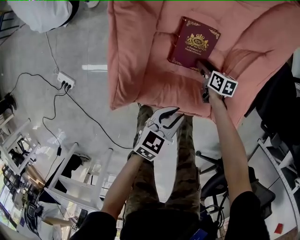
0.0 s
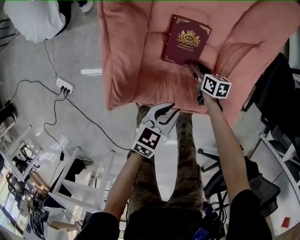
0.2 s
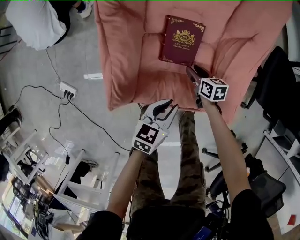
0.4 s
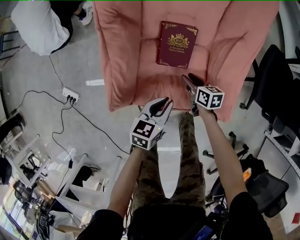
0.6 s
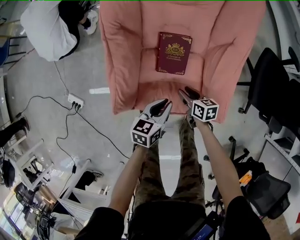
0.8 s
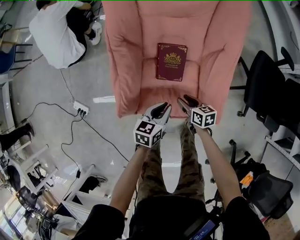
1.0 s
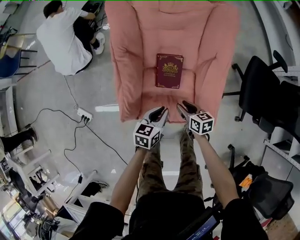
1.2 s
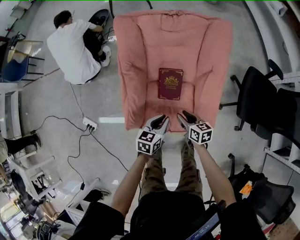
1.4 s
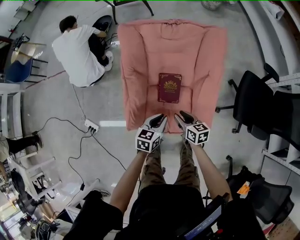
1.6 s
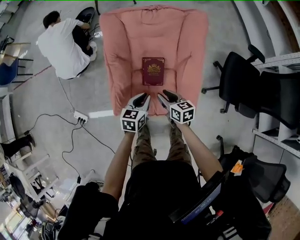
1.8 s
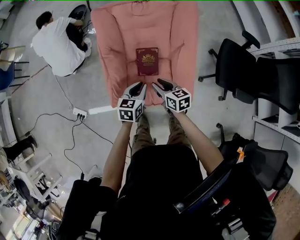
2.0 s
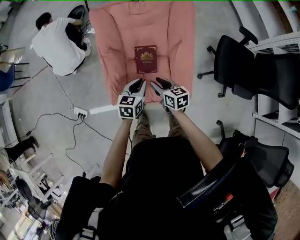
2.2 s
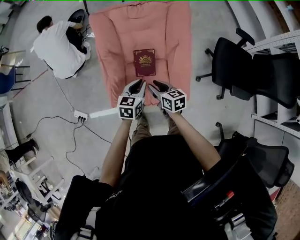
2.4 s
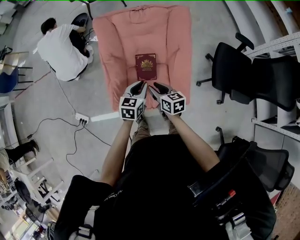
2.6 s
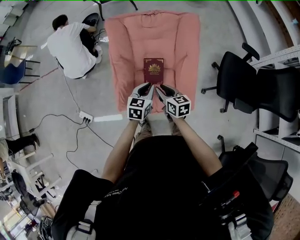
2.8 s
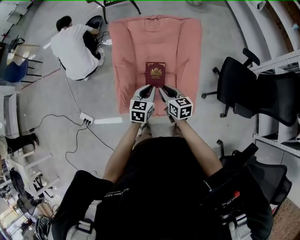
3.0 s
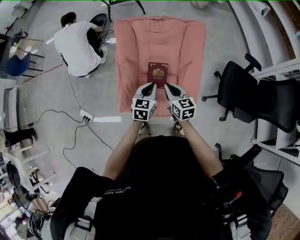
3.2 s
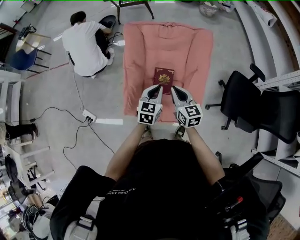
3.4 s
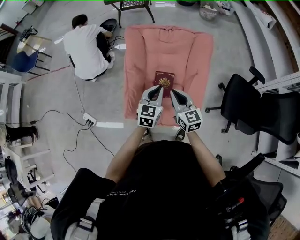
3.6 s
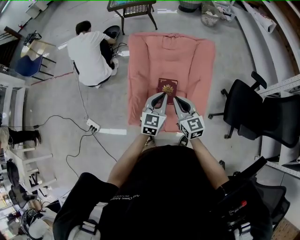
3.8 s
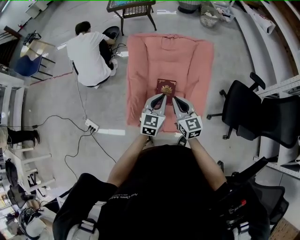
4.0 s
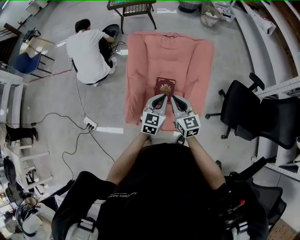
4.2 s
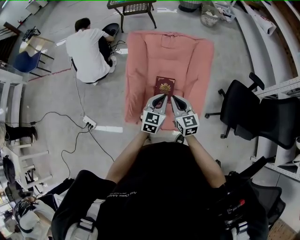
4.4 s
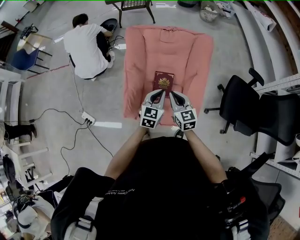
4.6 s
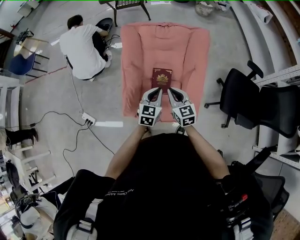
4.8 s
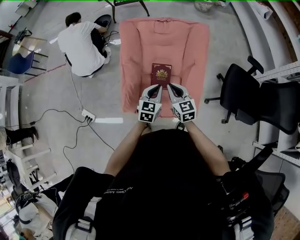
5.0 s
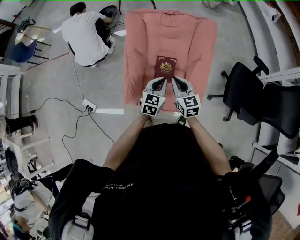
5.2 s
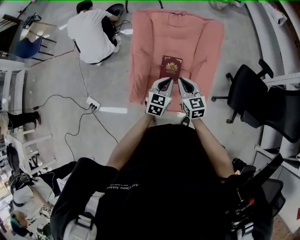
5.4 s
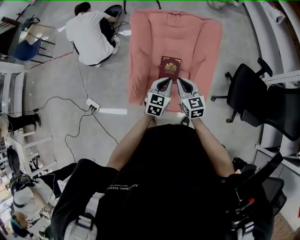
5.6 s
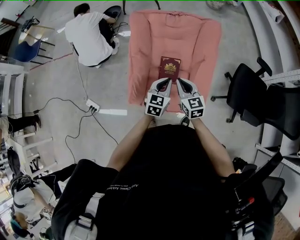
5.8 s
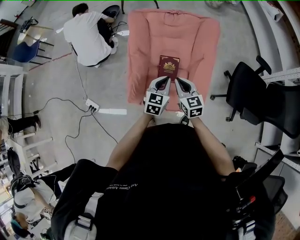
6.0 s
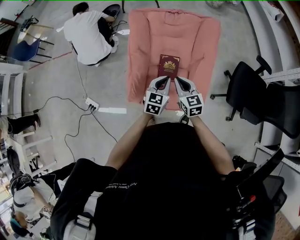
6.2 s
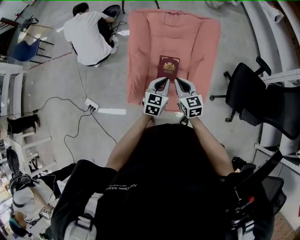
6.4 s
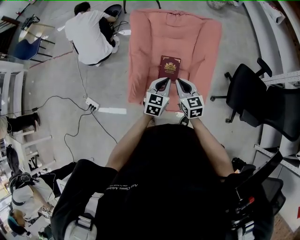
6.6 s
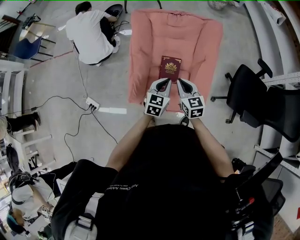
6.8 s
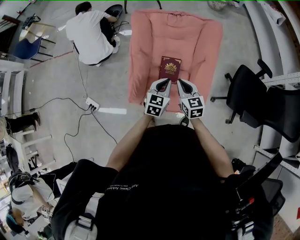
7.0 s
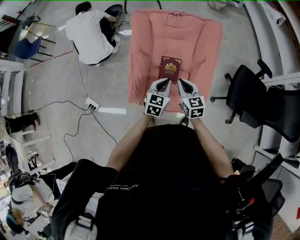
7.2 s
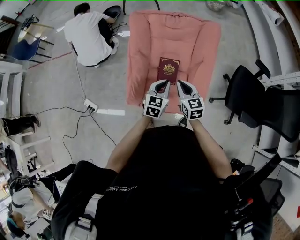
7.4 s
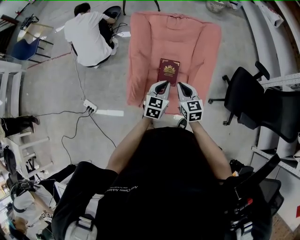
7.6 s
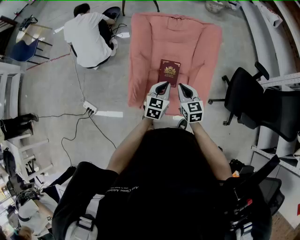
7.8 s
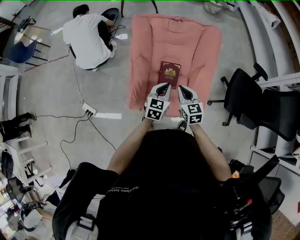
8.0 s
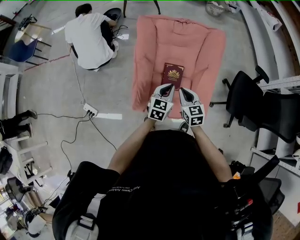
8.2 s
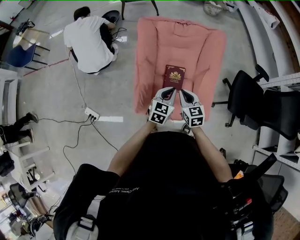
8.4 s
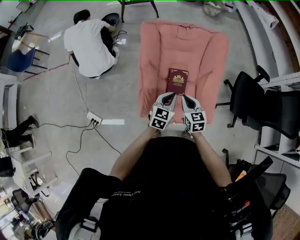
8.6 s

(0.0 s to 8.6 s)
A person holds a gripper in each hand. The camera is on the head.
0.0 s - 1.4 s: The left gripper is displaced upward by approximately 15 cm. The right gripper shifts roughly 30 cm upward and backward.
1.4 s - 2.8 s: Both grippers move upward, approximately 15 cm.
2.8 s - 4.4 s: Both grippers move upward, approximately 5 cm. The right gripper rotates about 30 degrees, and closes up.
4.4 s - 5.8 s: There are only small adjustments of the grippers.
5.8 s - 7.2 s: The two grippers keep their place.
7.2 s - 8.6 s: Both grippers move to the left, approximately 10 cm.

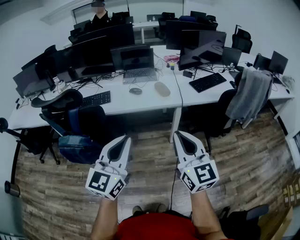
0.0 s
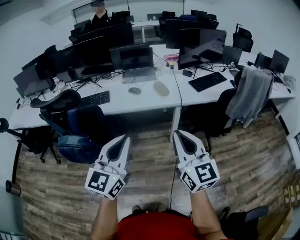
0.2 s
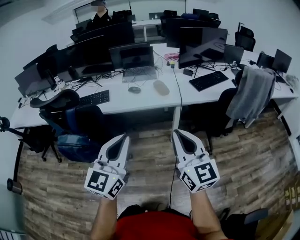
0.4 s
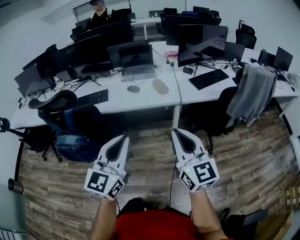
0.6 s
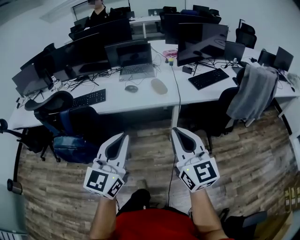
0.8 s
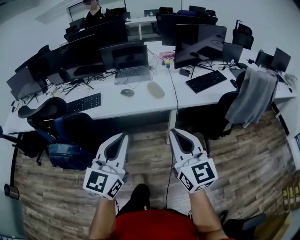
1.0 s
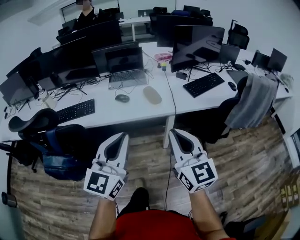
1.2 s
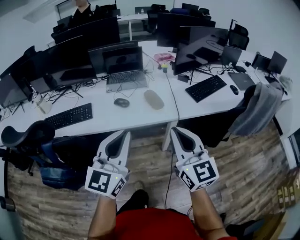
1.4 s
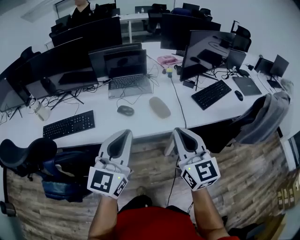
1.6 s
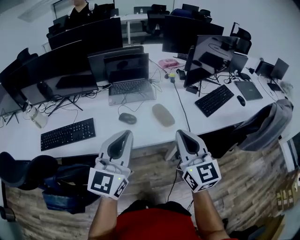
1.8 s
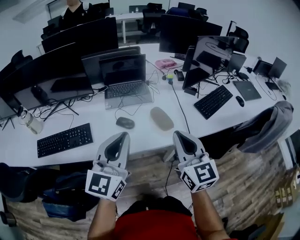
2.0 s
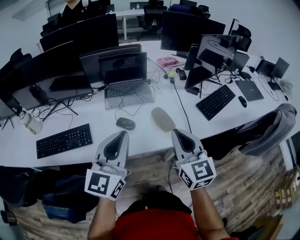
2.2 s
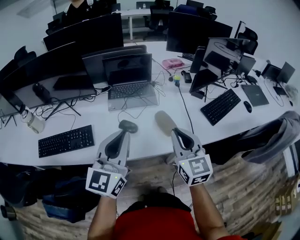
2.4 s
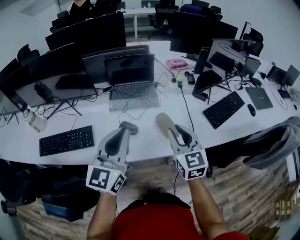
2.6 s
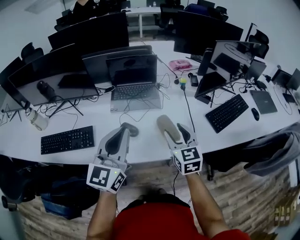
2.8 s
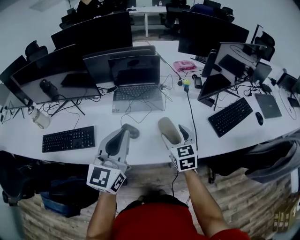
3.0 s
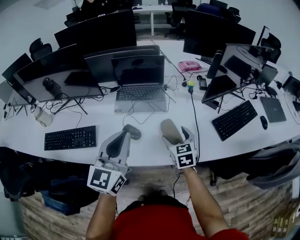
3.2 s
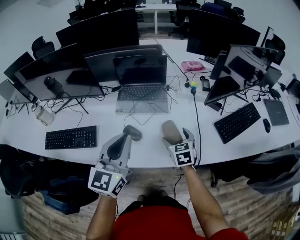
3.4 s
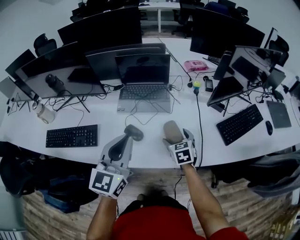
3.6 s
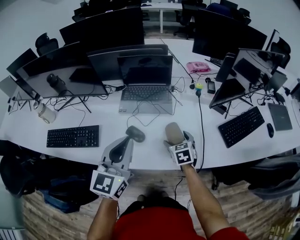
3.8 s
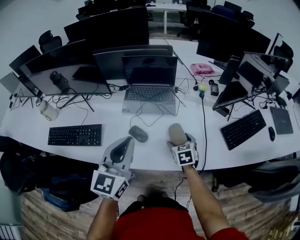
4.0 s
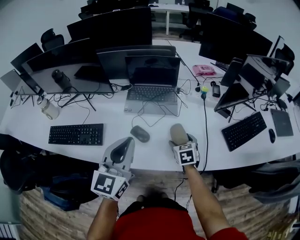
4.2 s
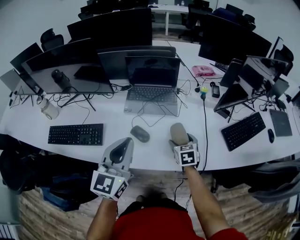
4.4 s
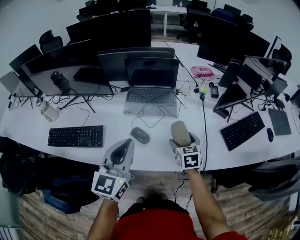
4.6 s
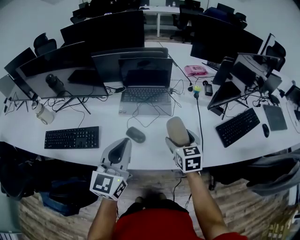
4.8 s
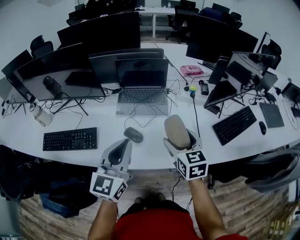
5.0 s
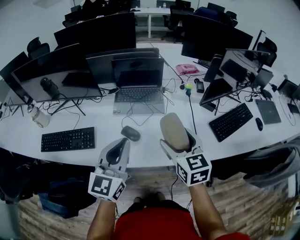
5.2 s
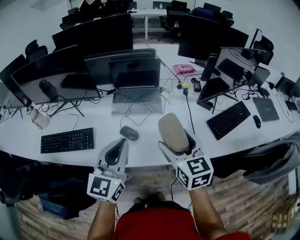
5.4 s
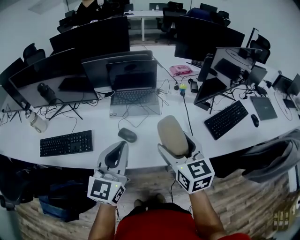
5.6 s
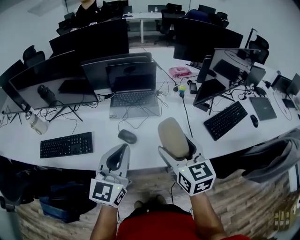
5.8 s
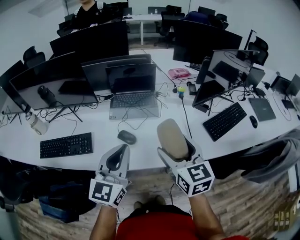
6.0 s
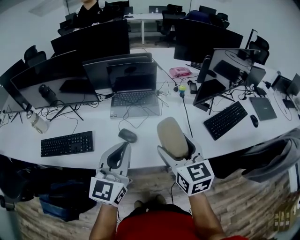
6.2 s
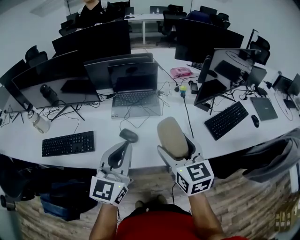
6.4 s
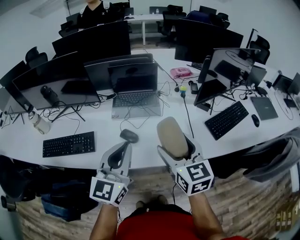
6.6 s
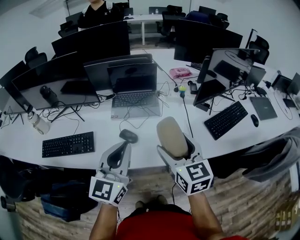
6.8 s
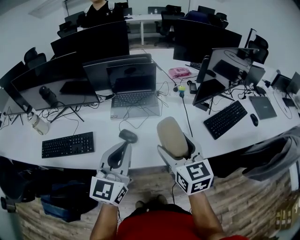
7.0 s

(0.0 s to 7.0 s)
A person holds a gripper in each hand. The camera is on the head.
0.0 s - 1.4 s: The grippers both shift forward by some 20 cm.
1.4 s - 2.8 s: The left gripper is displaced forward by about 25 cm, while the right gripper shifts about 35 cm forward and downward, and opens.
2.8 s - 4.2 s: The right gripper is displaced downward and forward by approximately 20 cm, turns by roughly 30 degrees, and opens its fingers.
4.2 s - 5.6 s: The right gripper heads upward and backward, covering some 25 cm, and turns by some 30 degrees.
5.6 s - 7.0 s: There are only small adjustments of the grippers.

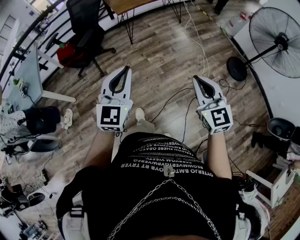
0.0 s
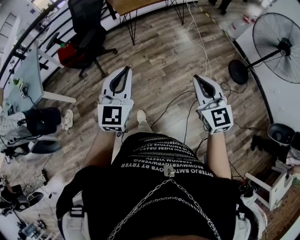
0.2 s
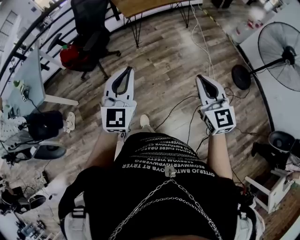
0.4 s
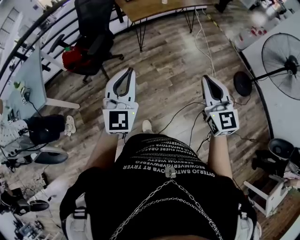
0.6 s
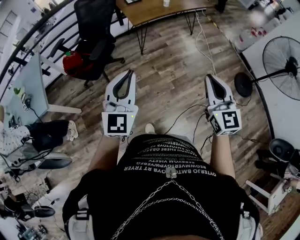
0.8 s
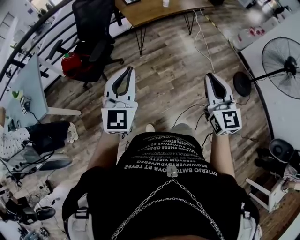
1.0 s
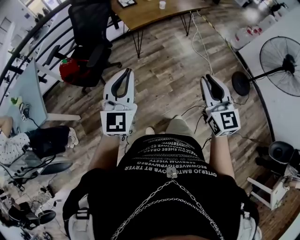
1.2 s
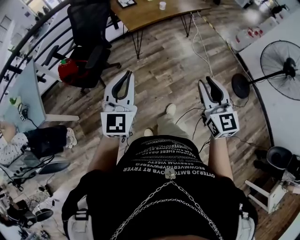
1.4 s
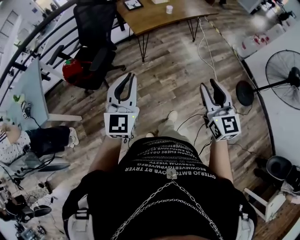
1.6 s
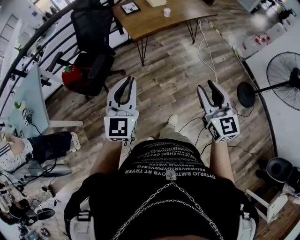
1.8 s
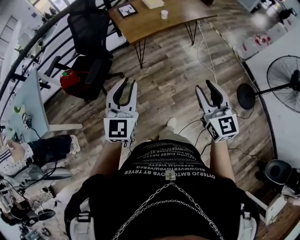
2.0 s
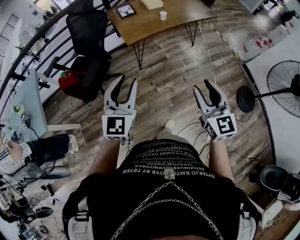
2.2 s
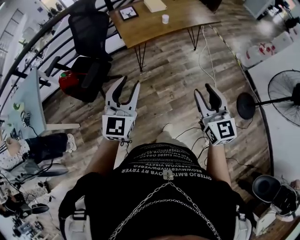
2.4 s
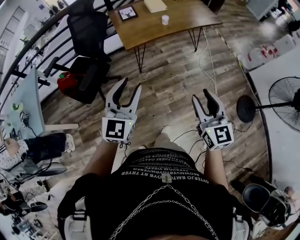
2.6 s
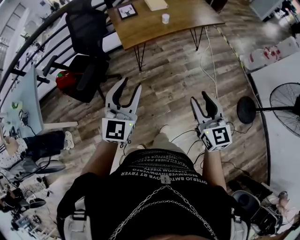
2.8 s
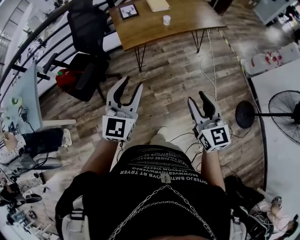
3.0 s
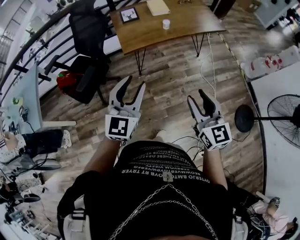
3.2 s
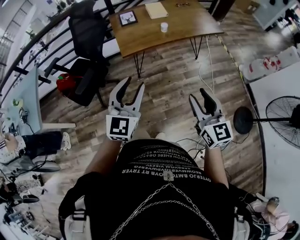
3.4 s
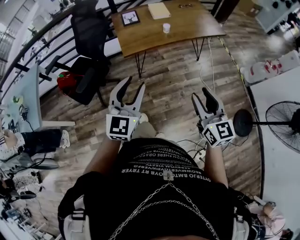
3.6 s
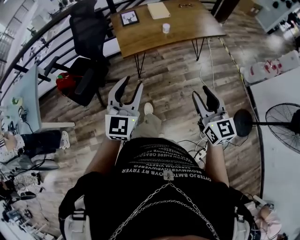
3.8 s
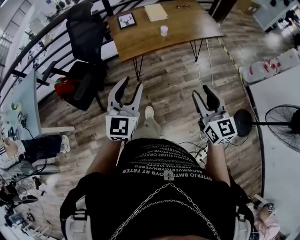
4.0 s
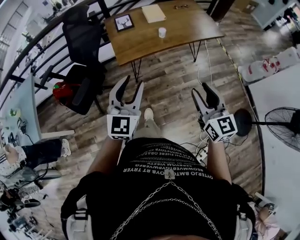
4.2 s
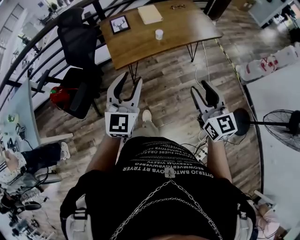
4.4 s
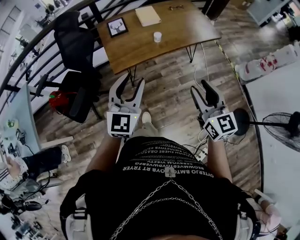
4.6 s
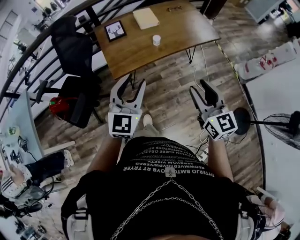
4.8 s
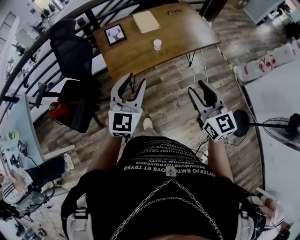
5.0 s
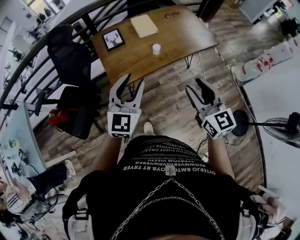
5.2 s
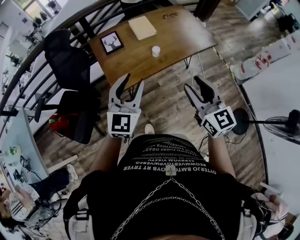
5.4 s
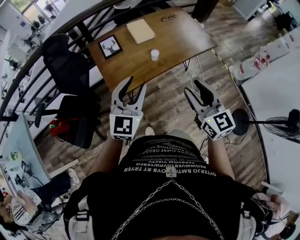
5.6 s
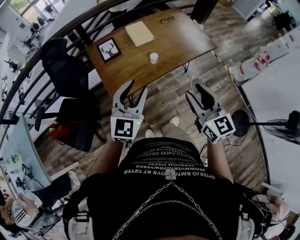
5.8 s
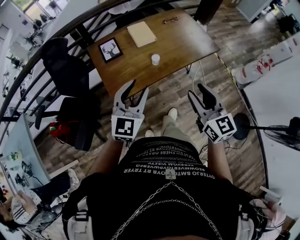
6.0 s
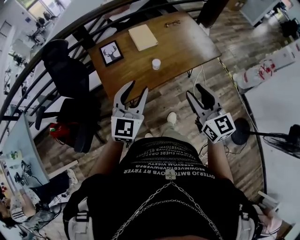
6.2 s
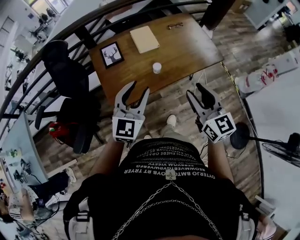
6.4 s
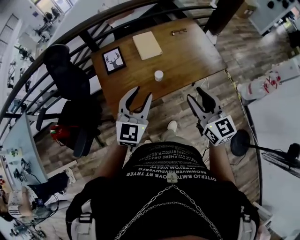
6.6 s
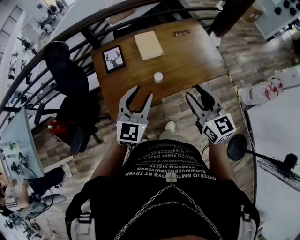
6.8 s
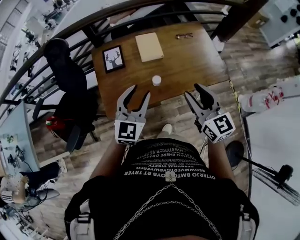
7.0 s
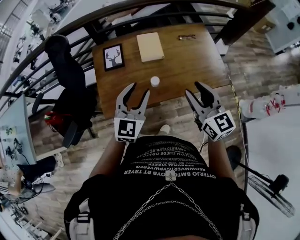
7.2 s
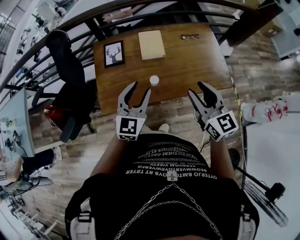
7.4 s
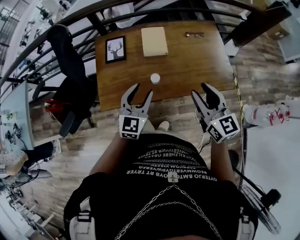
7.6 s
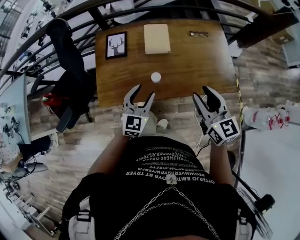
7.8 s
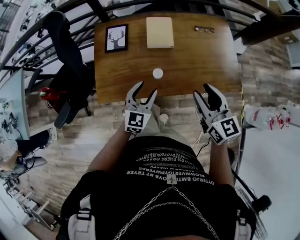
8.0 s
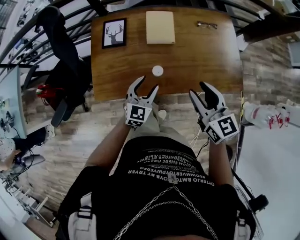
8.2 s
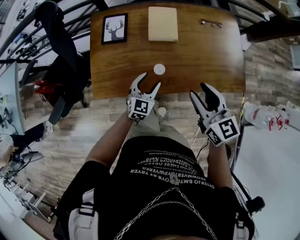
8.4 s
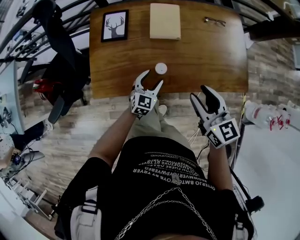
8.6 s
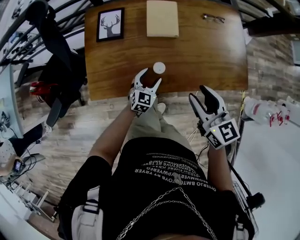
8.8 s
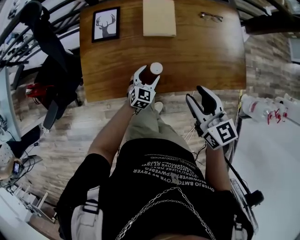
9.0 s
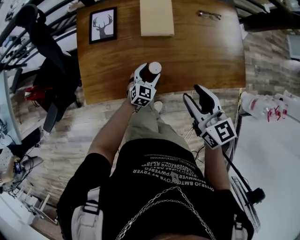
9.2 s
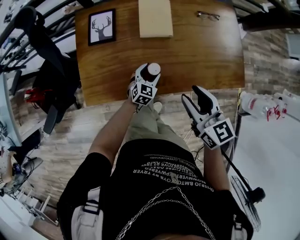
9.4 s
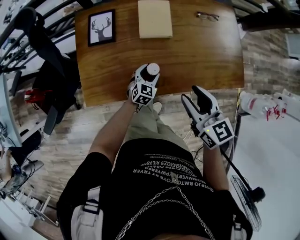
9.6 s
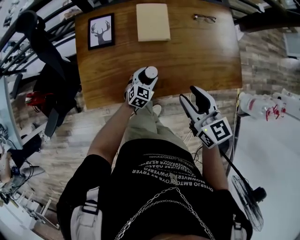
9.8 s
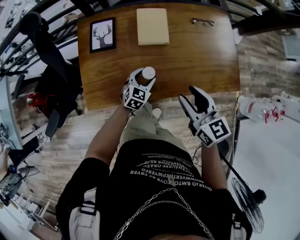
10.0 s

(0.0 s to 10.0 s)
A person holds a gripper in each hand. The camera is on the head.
0.0 s - 1.4 s: The two grippers go roughly 25 cm forward and to the left.
1.4 s - 2.8 s: Both grippers move forward and to the right, approximately 25 cm. The left gripper opens up.
2.8 s - 4.2 s: The left gripper moves forward and to the right, roughly 15 cm. The right gripper heads forward, covering about 15 cm.
4.2 s - 5.8 s: The two grippers go some 20 cm forward.
5.8 s - 7.2 s: The right gripper moves forward, roughly 25 cm, while the left gripper travels forward and to the right by some 20 cm.
7.2 s - 8.6 s: The right gripper travels downward and forward by roughly 15 cm. The left gripper goes some 30 cm downward.
